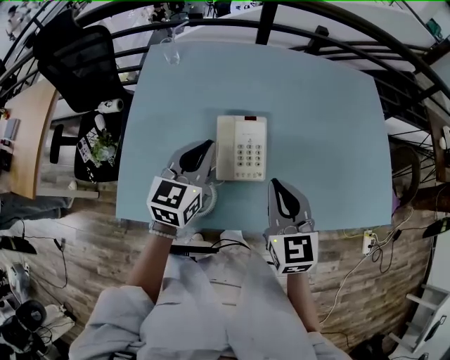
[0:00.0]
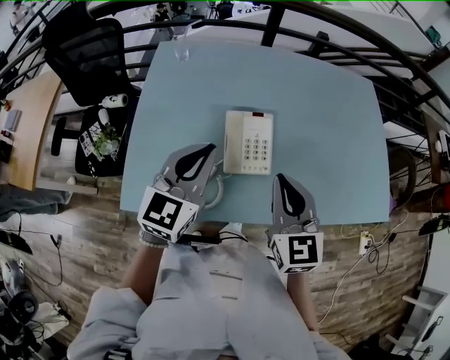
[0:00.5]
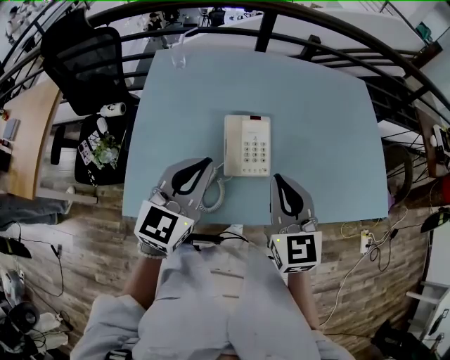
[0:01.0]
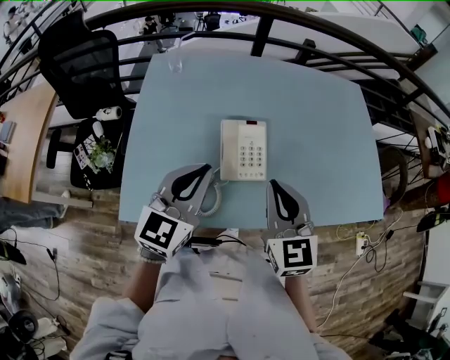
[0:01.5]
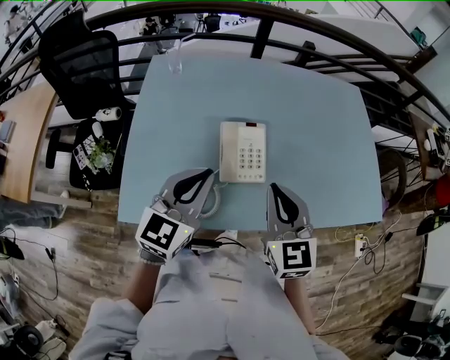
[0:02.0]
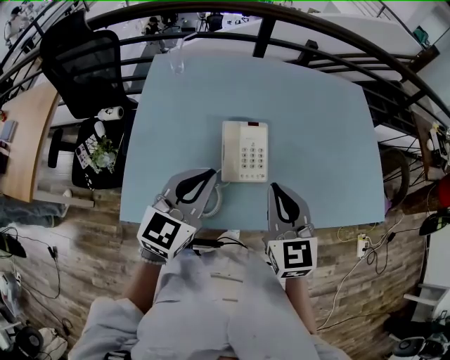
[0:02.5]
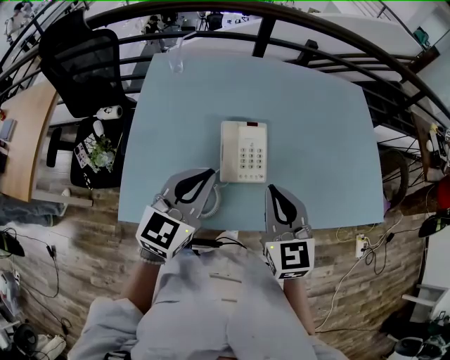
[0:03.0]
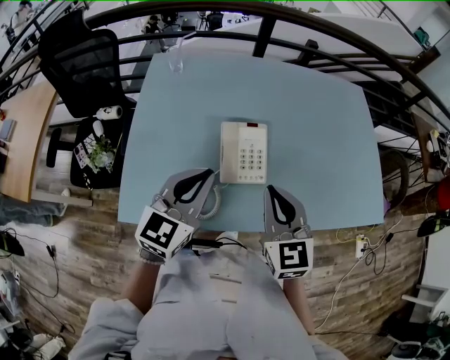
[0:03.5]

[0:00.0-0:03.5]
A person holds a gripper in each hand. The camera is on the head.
0:00.0 to 0:02.0: The left gripper heads backward and upward, covering approximately 10 cm. Meanwhile the right gripper changes place by about 5 cm.
0:02.0 to 0:03.5: There are only small adjustments of the grippers.

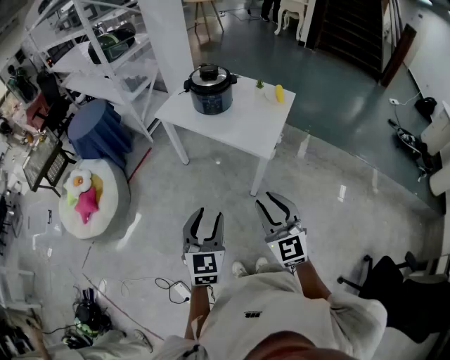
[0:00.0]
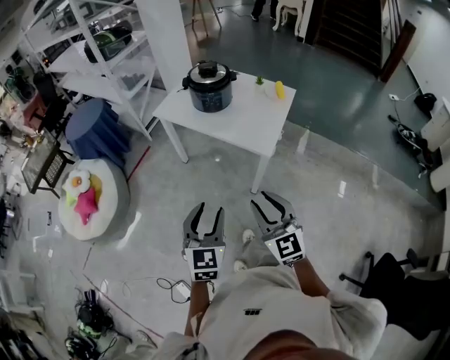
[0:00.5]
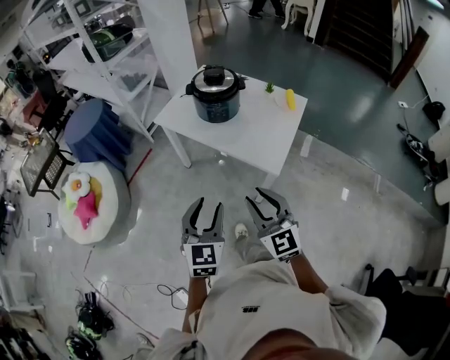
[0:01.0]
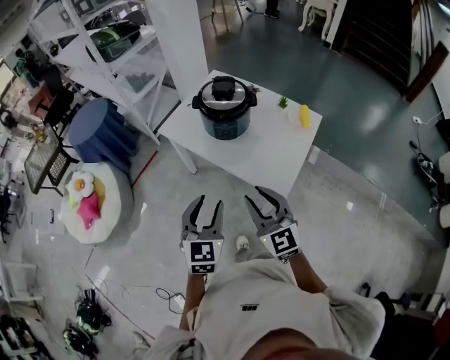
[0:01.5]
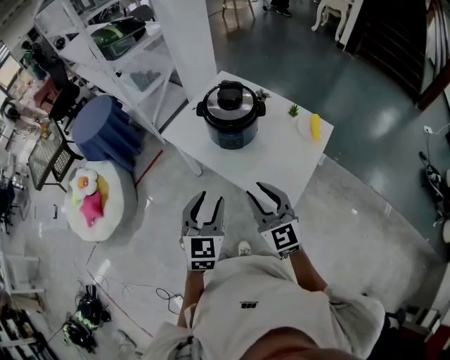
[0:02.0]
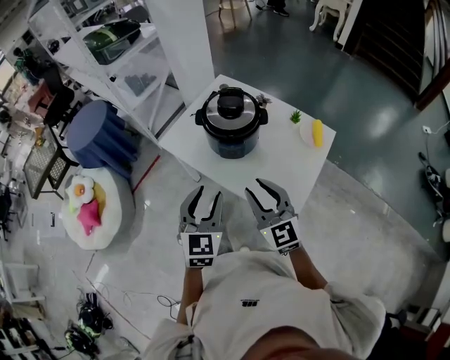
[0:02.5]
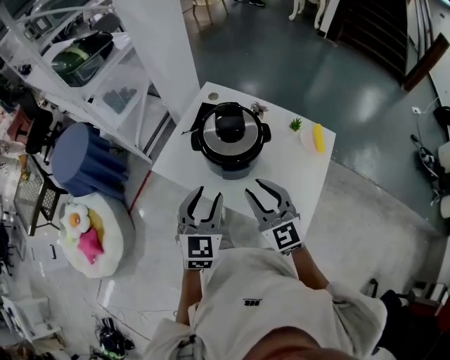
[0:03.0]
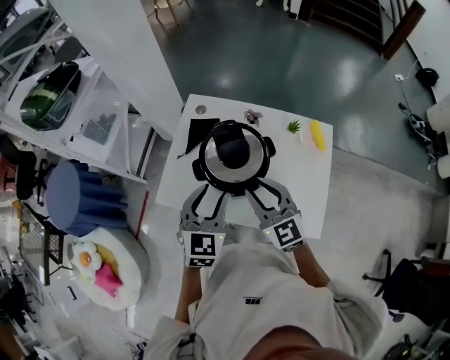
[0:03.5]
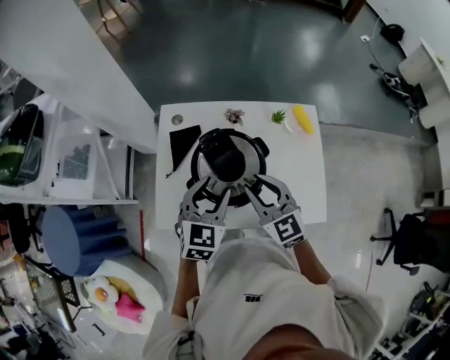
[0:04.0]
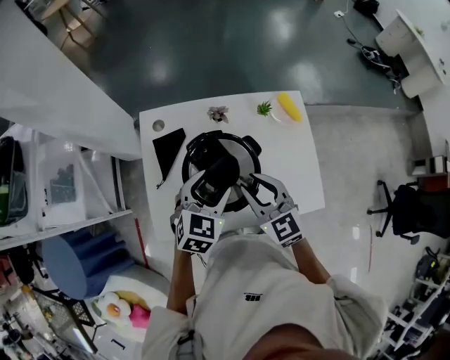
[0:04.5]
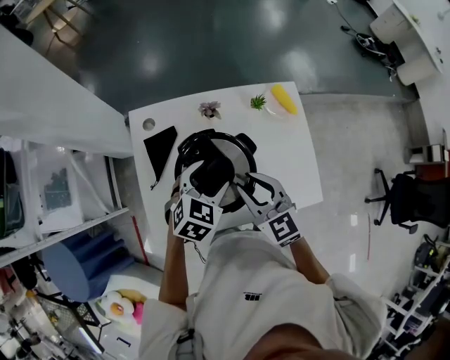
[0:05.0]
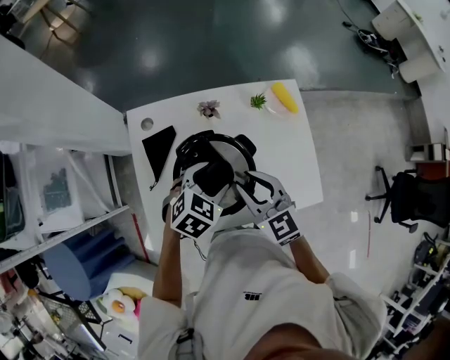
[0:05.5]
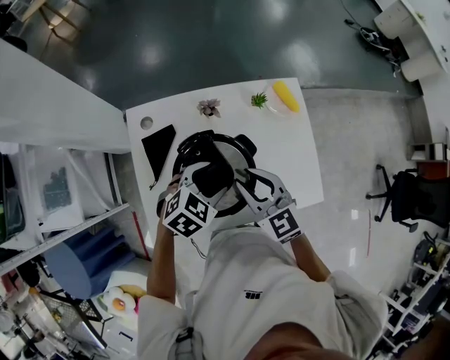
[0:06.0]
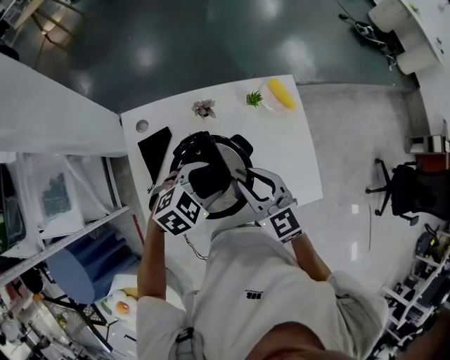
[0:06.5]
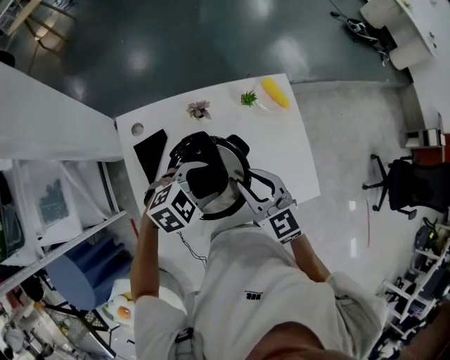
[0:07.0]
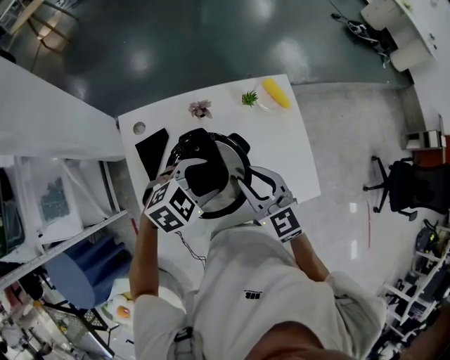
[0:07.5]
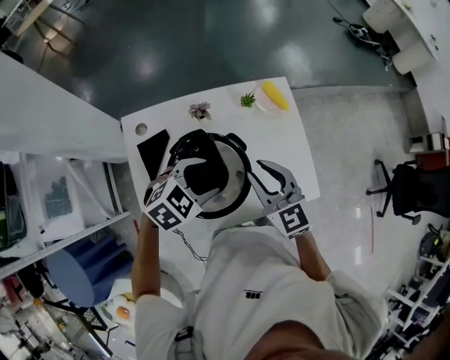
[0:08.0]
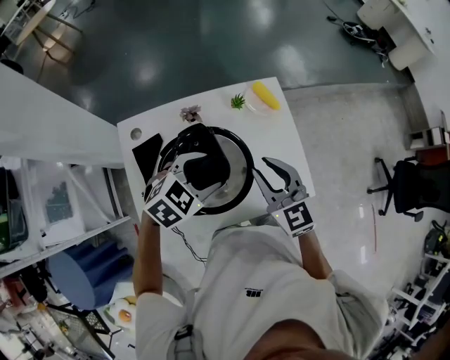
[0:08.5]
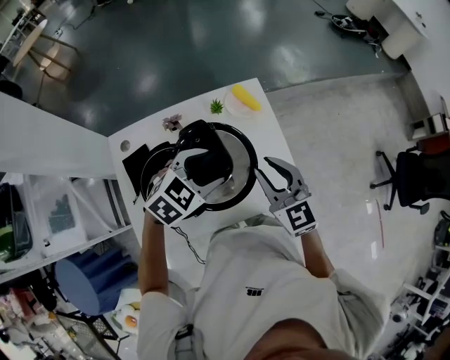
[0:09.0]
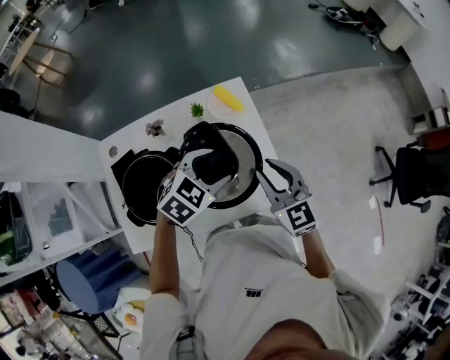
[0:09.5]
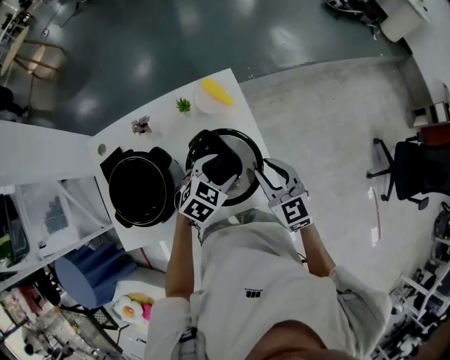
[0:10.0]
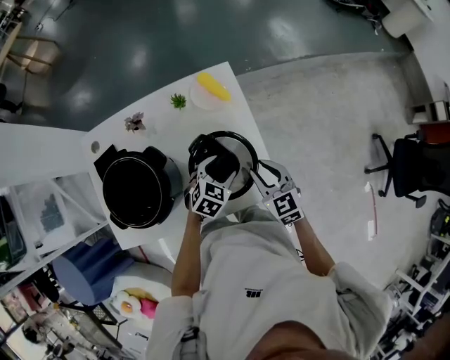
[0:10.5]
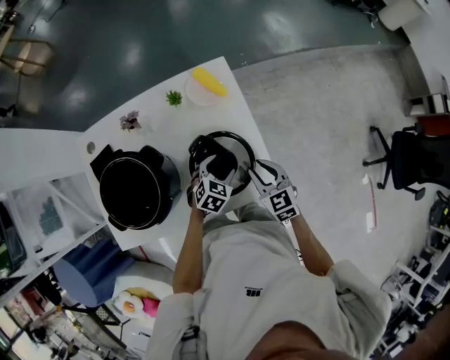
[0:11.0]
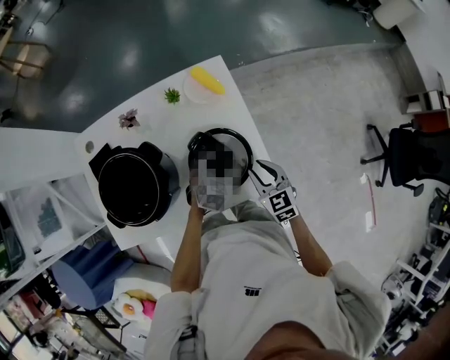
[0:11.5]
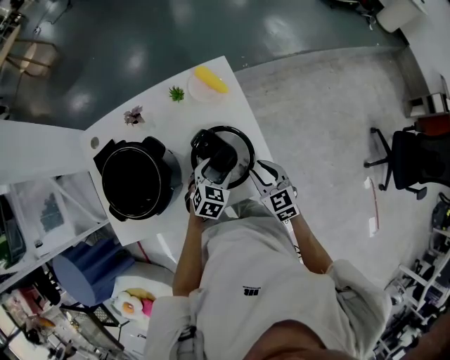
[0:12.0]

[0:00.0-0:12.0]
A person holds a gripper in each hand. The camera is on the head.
0:00.0 to 0:02.0: Both grippers move forward, approximately 40 cm.
0:02.0 to 0:04.0: The left gripper ends up about 40 cm from where it was, and turns by about 50 degrees; the right gripper changes place by approximately 35 cm, and swivels approximately 30 degrees.
0:04.0 to 0:06.0: The left gripper travels downward and forward by approximately 10 cm, and turns by some 40 degrees. The right gripper is displaced forward by roughly 5 cm.
0:06.0 to 0:08.0: The right gripper moves to the right, some 5 cm.
0:08.0 to 0:10.0: The right gripper goes roughly 30 cm to the right; the left gripper moves to the right and forward, approximately 30 cm.
0:10.0 to 0:12.0: Both grippers move downward, roughly 10 cm.

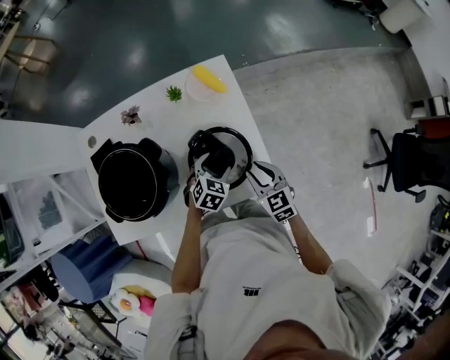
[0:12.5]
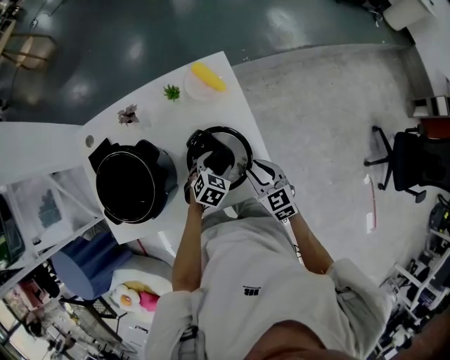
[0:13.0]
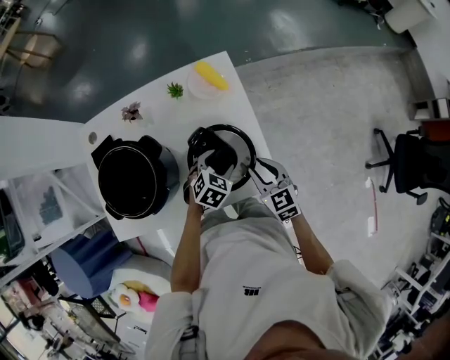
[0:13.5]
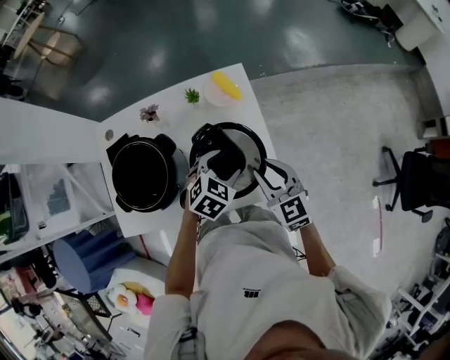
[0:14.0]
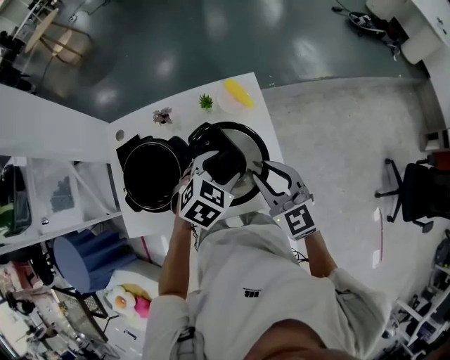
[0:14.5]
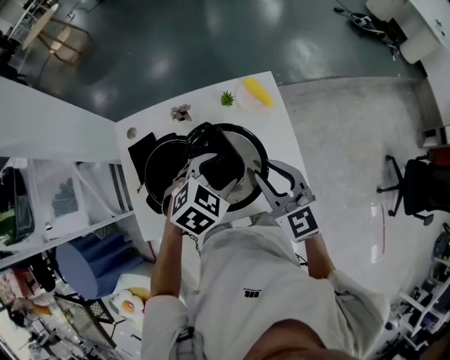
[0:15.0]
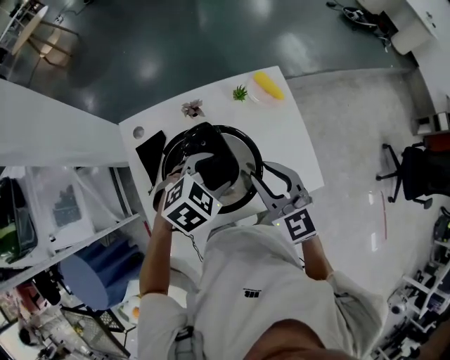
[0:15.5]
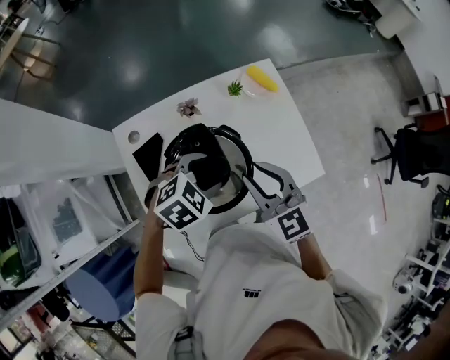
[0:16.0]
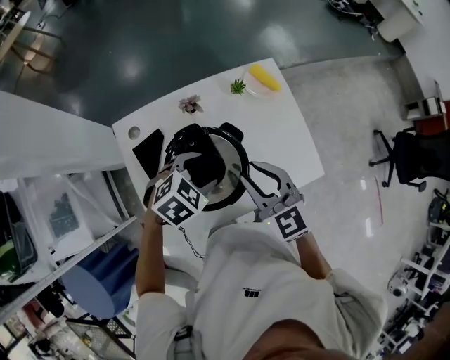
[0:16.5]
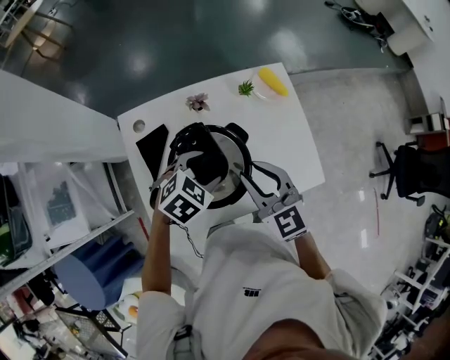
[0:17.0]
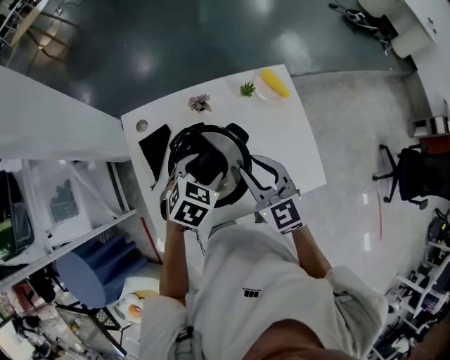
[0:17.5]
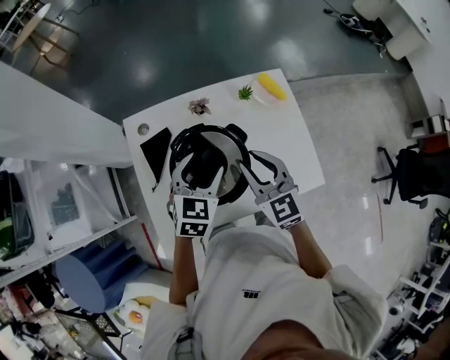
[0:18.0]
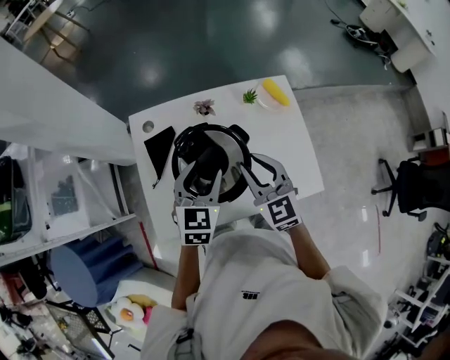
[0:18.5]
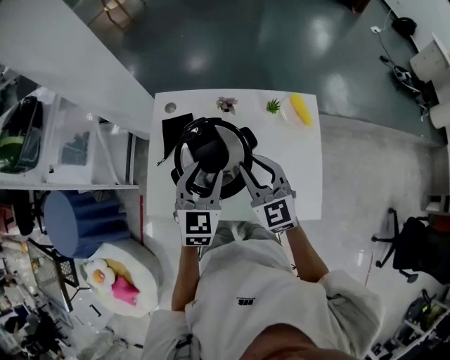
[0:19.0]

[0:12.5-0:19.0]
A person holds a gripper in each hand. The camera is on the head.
0:12.5 to 0:14.5: The grippers both shift upward by about 20 cm. The right gripper rotates about 20 degrees.
0:14.5 to 0:17.0: Both grippers travel together to the left, about 25 cm.
0:17.0 to 0:19.0: The left gripper travels upward by some 5 cm, and turns by approximately 60 degrees.

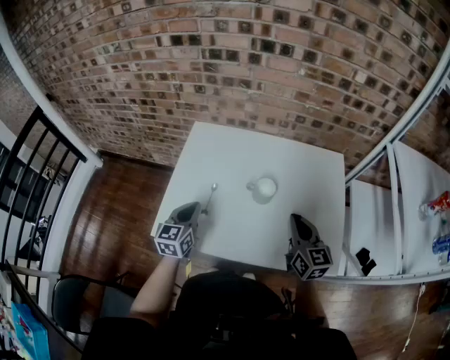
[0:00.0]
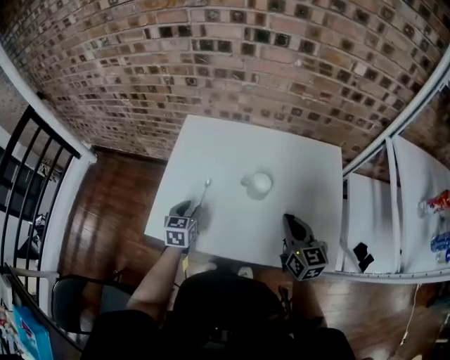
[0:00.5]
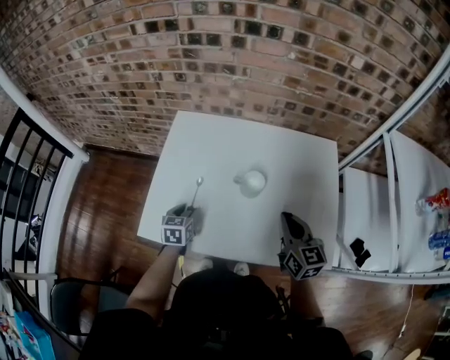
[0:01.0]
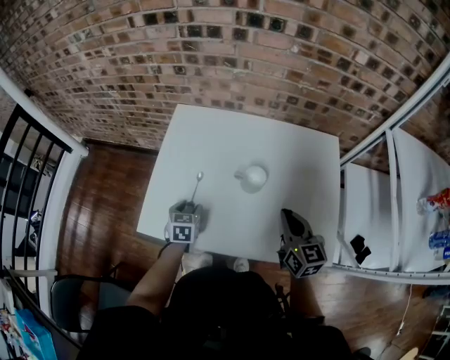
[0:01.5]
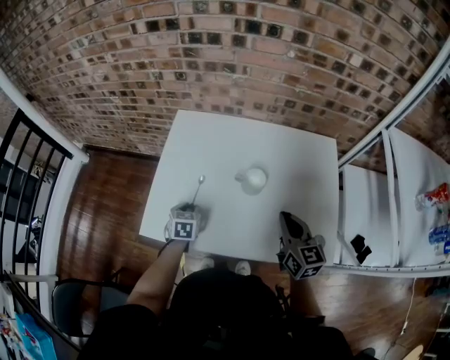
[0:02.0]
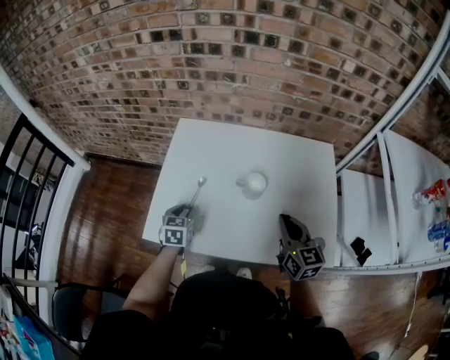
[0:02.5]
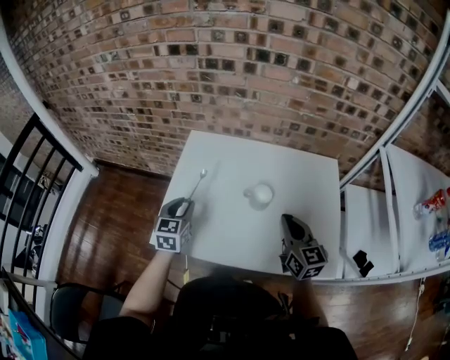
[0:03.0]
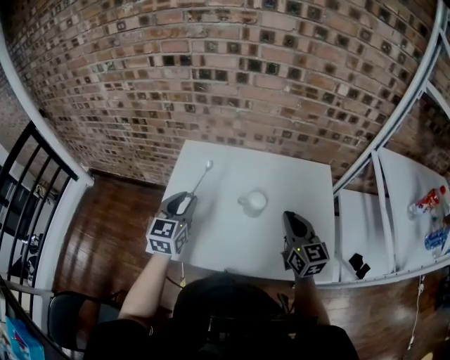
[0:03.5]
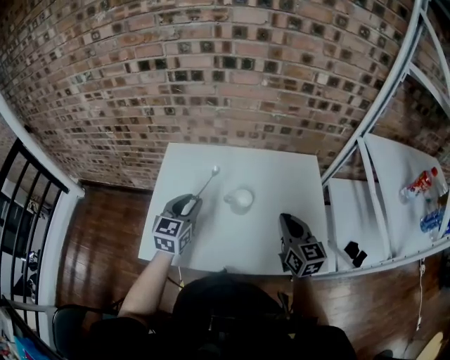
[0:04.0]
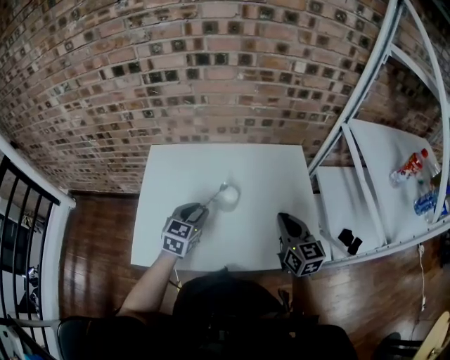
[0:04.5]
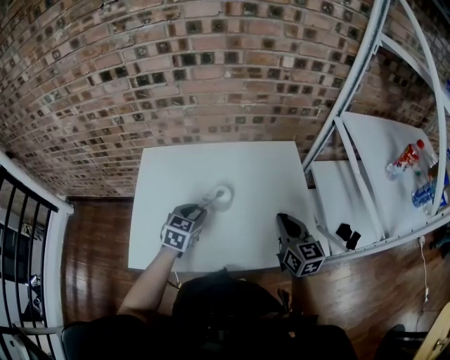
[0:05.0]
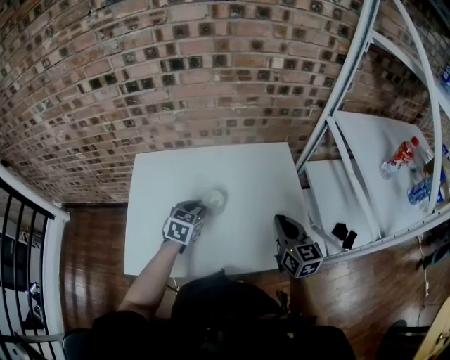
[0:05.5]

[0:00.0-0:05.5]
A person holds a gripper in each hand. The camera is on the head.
0:00.0 to 0:02.0: The left gripper heads downward, covering some 15 cm, changes its angle by approximately 30 degrees, and opens up.
0:02.0 to 0:03.5: The left gripper is displaced upward by roughly 25 cm, and tips its fingers upward by roughly 30 degrees; the right gripper is displaced upward by roughly 5 cm.
0:03.5 to 0:05.5: The right gripper travels to the right by approximately 10 cm. Meanwhile the left gripper is displaced to the right and downward by some 20 cm, and changes its angle by about 30 degrees.
